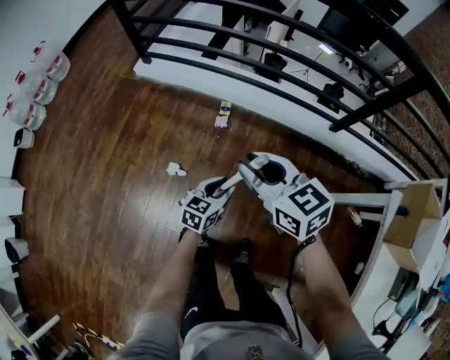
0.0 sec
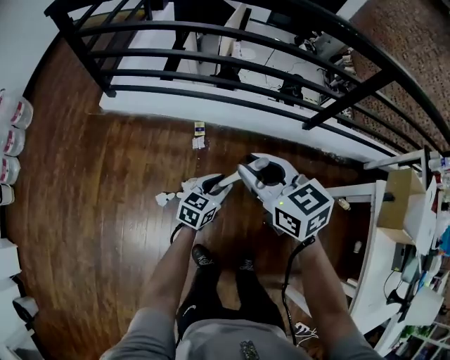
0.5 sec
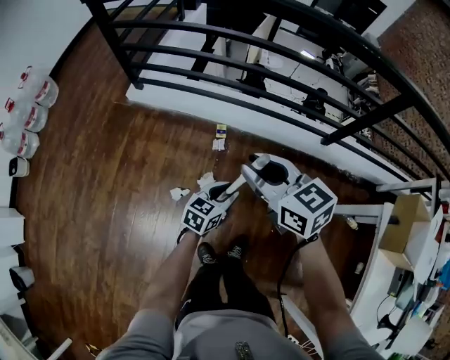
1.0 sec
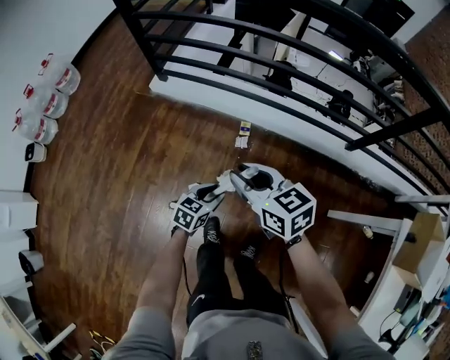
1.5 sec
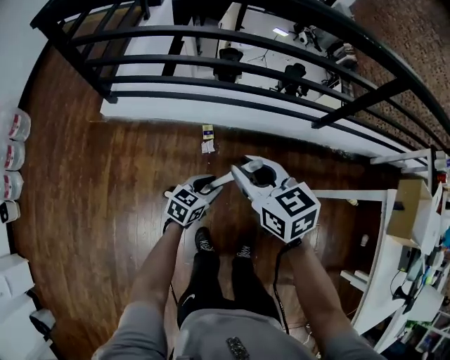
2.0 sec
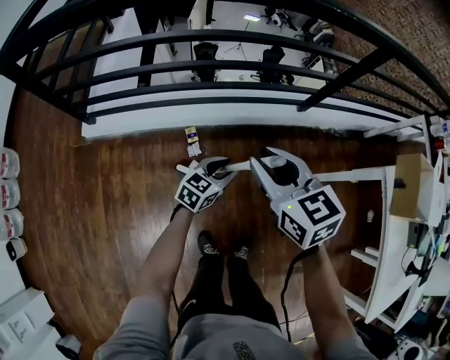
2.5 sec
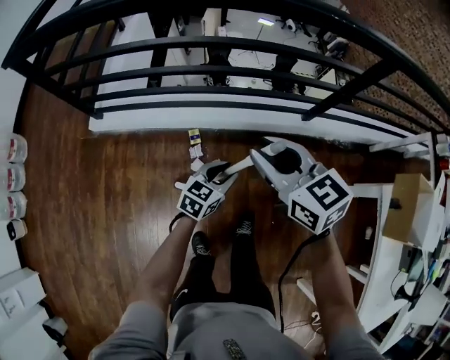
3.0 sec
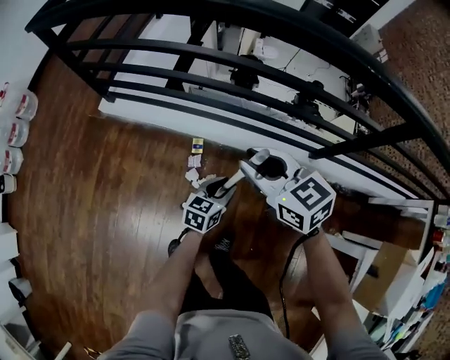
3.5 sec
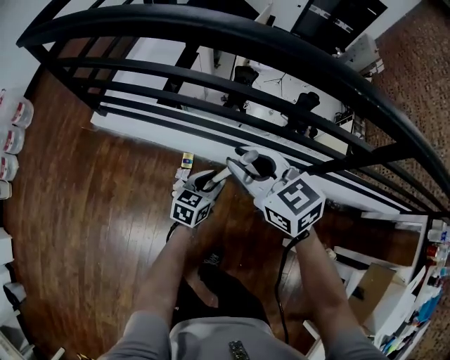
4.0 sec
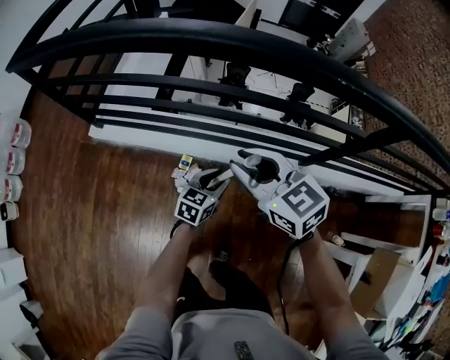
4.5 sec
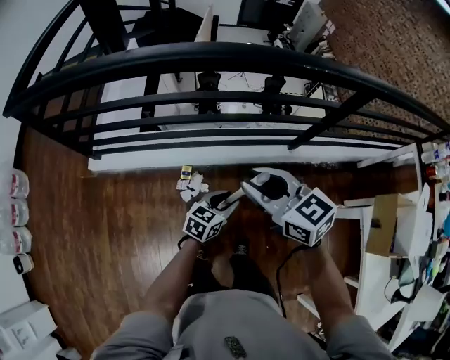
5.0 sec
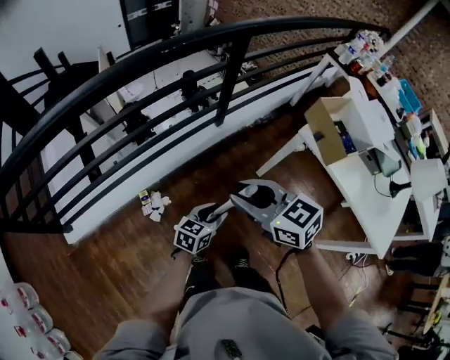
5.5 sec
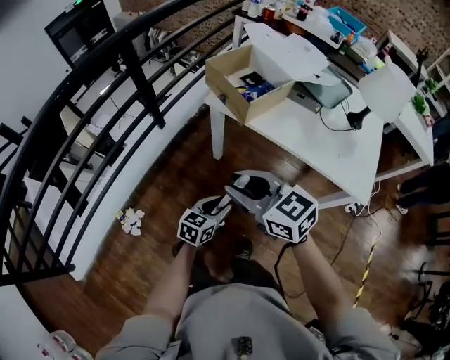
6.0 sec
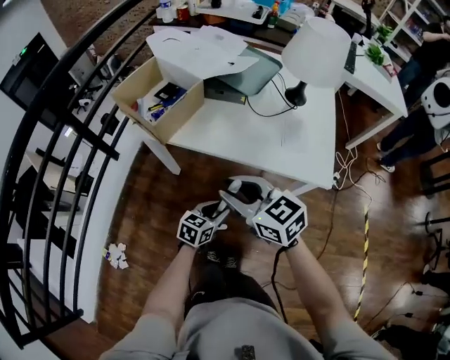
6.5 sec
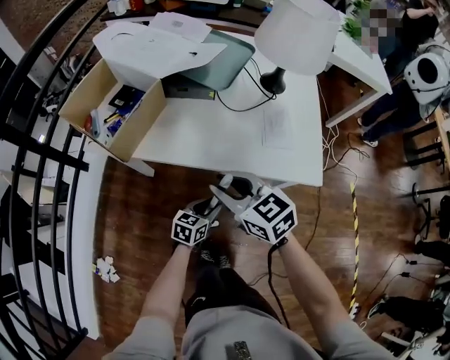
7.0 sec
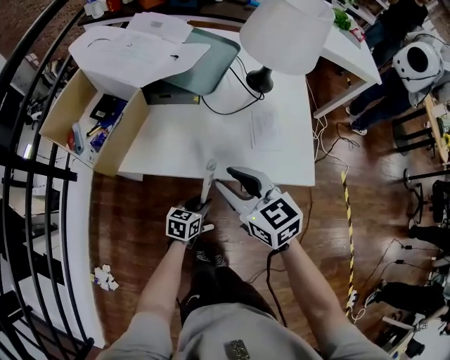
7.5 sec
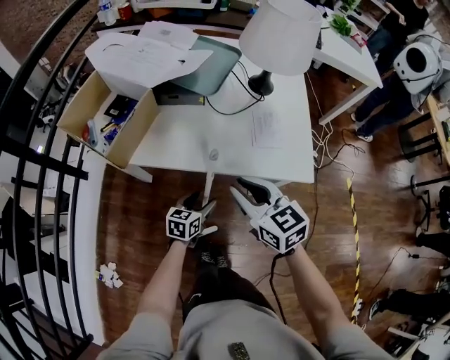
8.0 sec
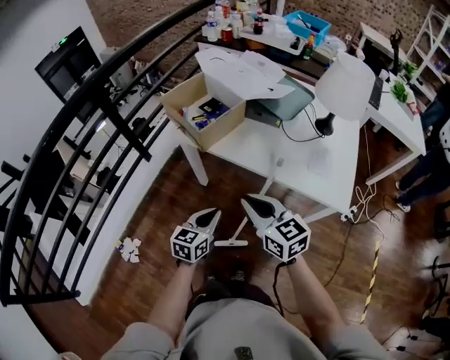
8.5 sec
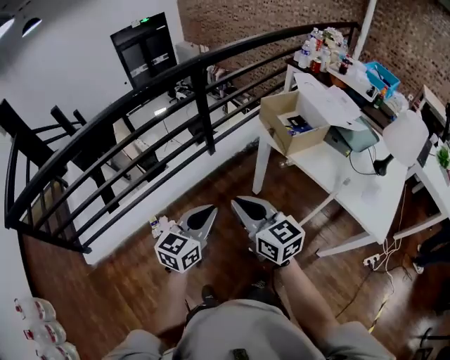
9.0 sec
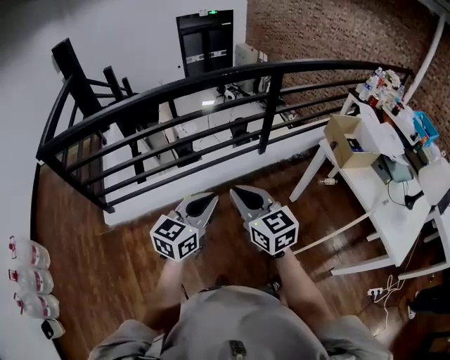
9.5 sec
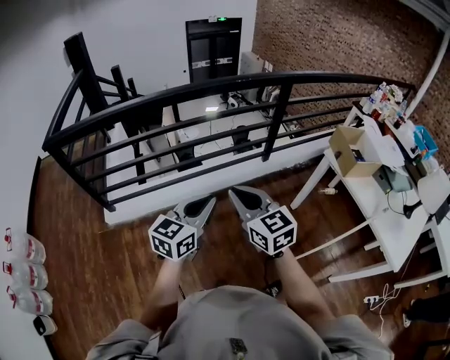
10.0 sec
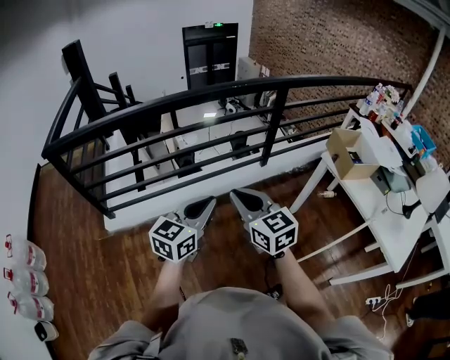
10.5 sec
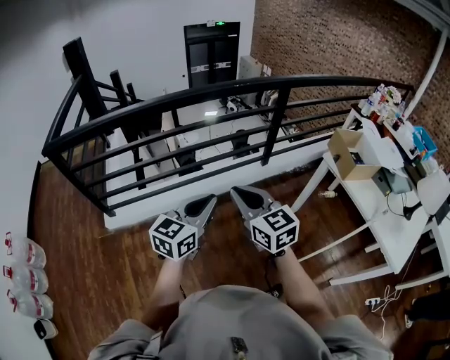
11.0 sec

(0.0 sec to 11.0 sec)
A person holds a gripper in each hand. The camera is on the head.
0.0 sec - 2.0 sec: Both grippers travel together forward and to the left, approximately 20 cm. The left gripper turns by roughly 20 degrees; the right gripper changes its angle by about 20 degrees.
2.0 sec - 3.5 sec: The left gripper moves about 20 cm, and swivels about 20 degrees; the right gripper shifts by about 20 cm, and swivels approximately 20 degrees.
3.5 sec - 5.5 sec: The left gripper changes place by approximately 25 cm, and turns by approximately 50 degrees, while the right gripper ends up about 25 cm from where it was, and swivels roughly 40 degrees.
5.5 sec - 7.5 sec: The two grippers travel together, roughly 60 cm. The left gripper swivels roughly 40 degrees, while the right gripper changes its angle by roughly 60 degrees.
7.5 sec - 9.0 sec: The two grippers travel together, some 50 cm. The right gripper swivels roughly 40 degrees, and closes its fingers; the left gripper changes its angle by roughly 60 degrees, and closes.
9.0 sec - 11.0 sec: Both grippers travel together to the left, approximately 30 cm.

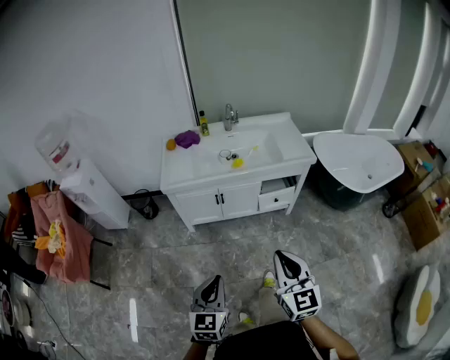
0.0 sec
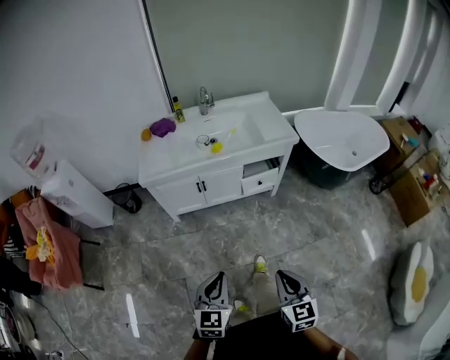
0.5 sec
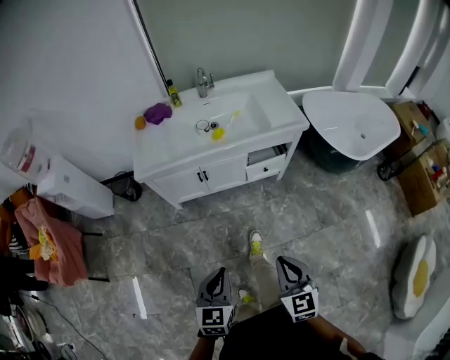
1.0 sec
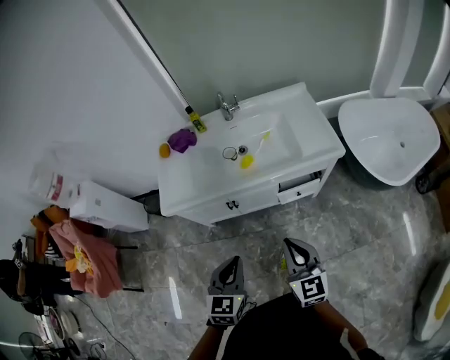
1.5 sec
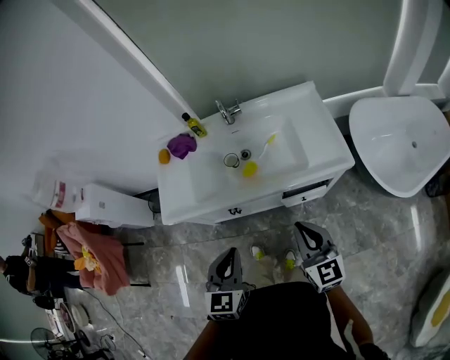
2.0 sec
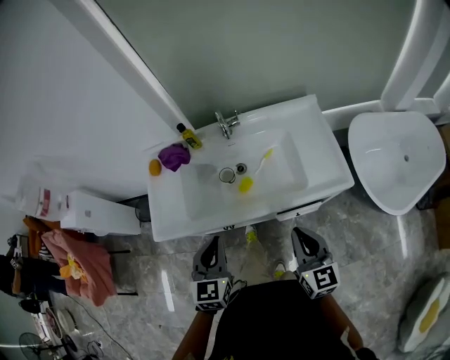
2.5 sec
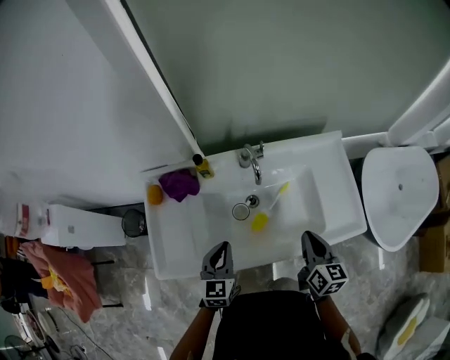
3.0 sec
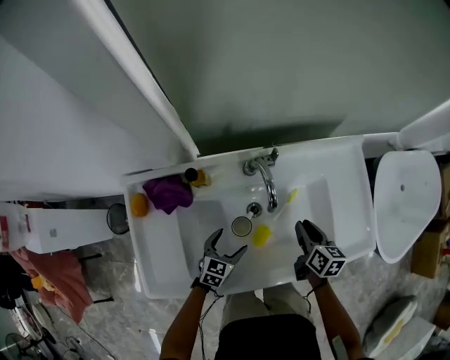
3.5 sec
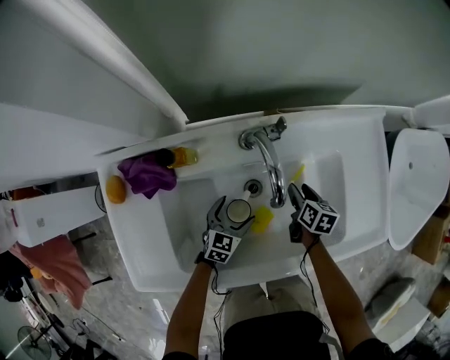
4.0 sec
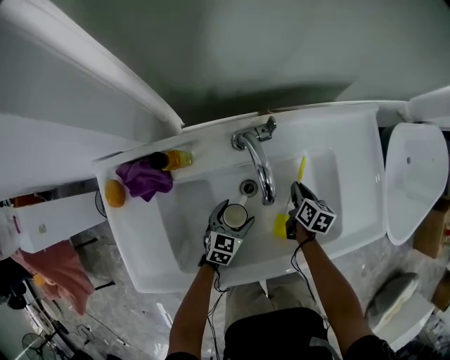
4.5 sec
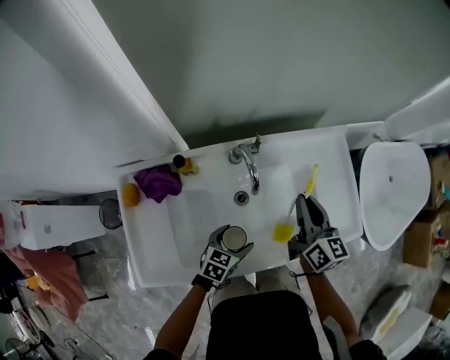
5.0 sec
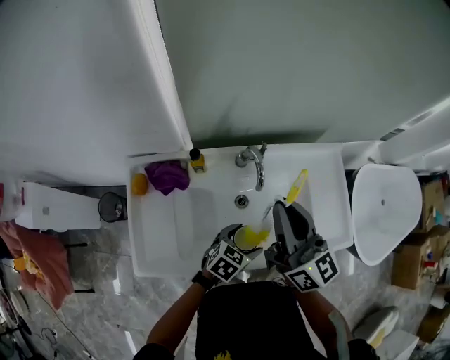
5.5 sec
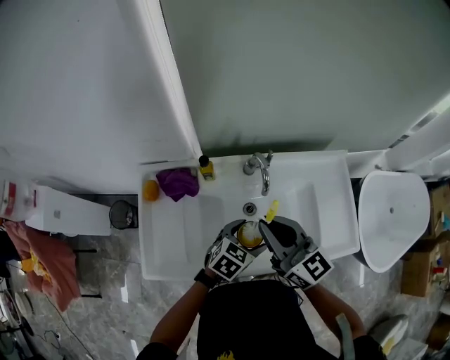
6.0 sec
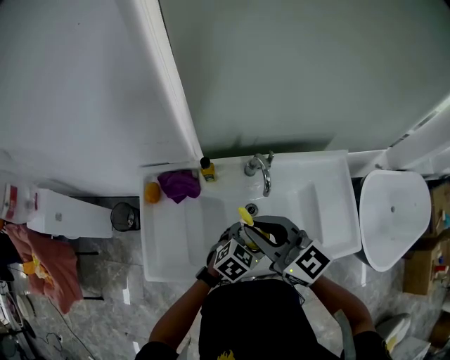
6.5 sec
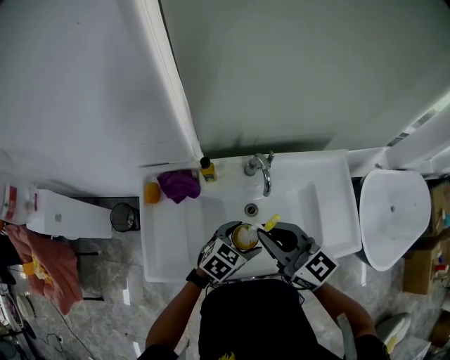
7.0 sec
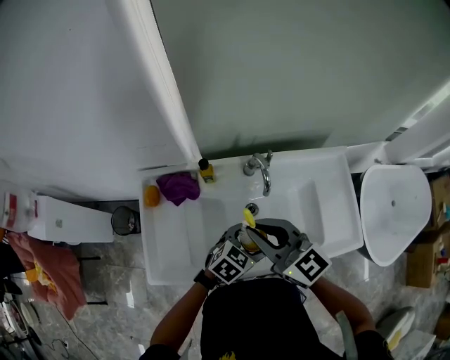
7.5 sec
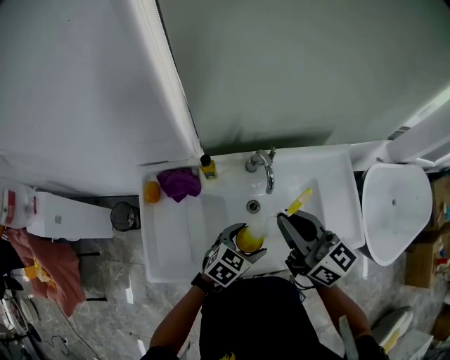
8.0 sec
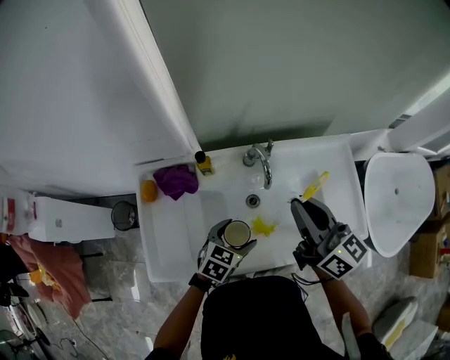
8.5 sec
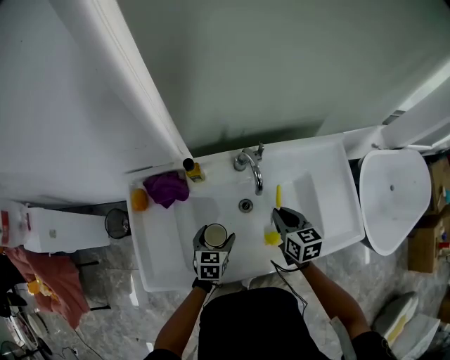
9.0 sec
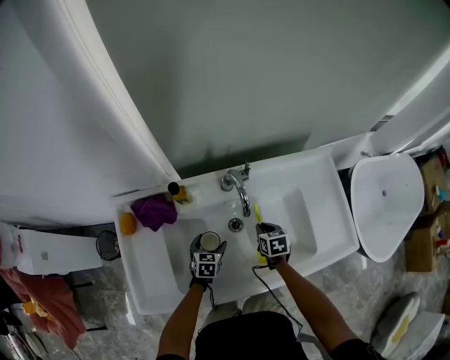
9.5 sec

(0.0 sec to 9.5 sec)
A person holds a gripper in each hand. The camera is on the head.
0.0 sec - 2.0 sec: The two grippers travel together, forward, some 50 cm.
2.0 sec - 4.0 sec: Both grippers are carried forward, about 50 cm. Both grippers travel together downward, roughly 40 cm. The left gripper swivels approximately 30 degrees, and opens its fingers. Meanwhile the right gripper angles its fingers downward, by approximately 40 degrees, and opens up.
4.0 sec - 5.5 sec: The right gripper heads upward, covering some 50 cm, tilts its fingers some 60 degrees upward, and closes up. The left gripper goes about 25 cm upward.
5.5 sec - 7.5 sec: The right gripper goes roughly 10 cm to the left and backward, and changes its angle by some 30 degrees.
7.5 sec - 9.5 sec: The grippers both shift downward by approximately 30 cm. The right gripper angles its fingers downward, by some 50 degrees. The left gripper turns by approximately 30 degrees.

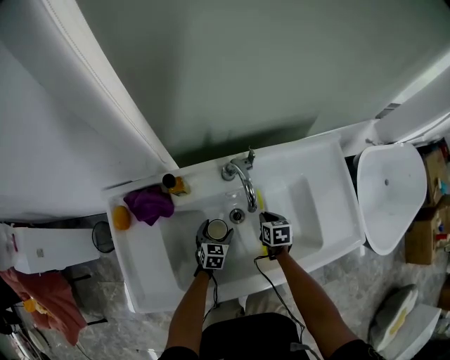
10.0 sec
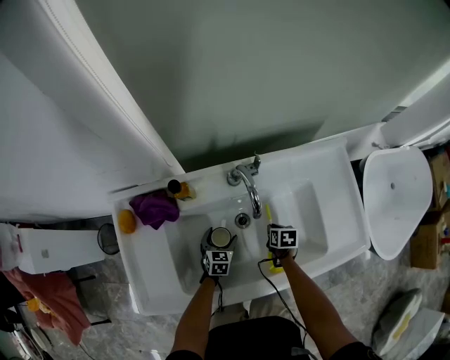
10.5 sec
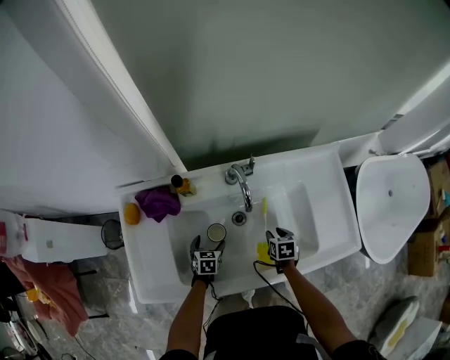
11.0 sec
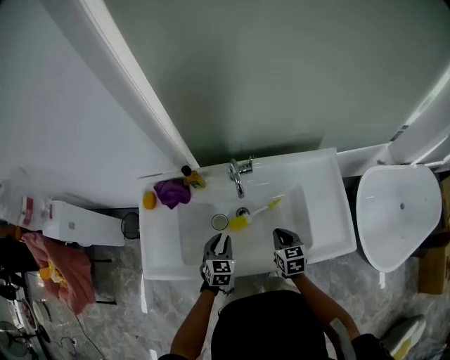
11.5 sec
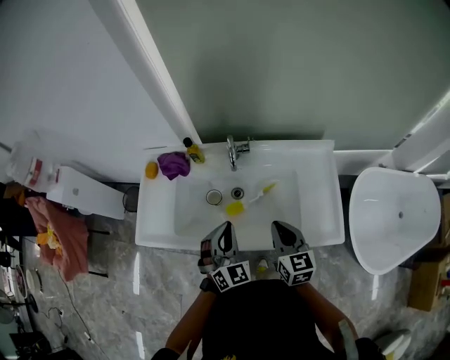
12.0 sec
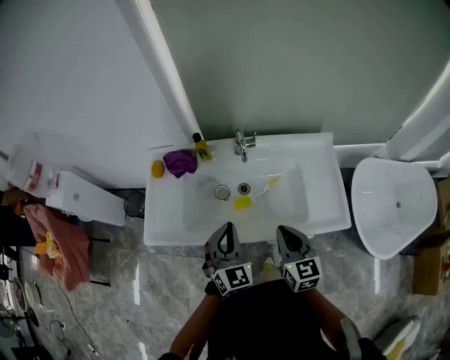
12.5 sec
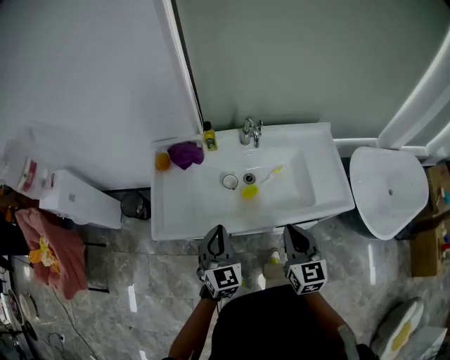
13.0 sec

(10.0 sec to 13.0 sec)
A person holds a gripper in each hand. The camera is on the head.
10.0 sec - 11.5 sec: Both grippers travel together upward and backward, some 20 cm. The left gripper closes up. Meanwhile the right gripper turns by about 20 degrees, and opens and closes again.
11.5 sec - 13.0 sec: Both grippers move backward, upward and to the left, roughly 30 cm. The right gripper turns by roughly 20 degrees. The left gripper changes its angle by approximately 20 degrees.

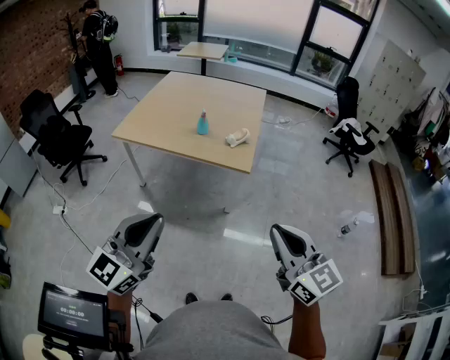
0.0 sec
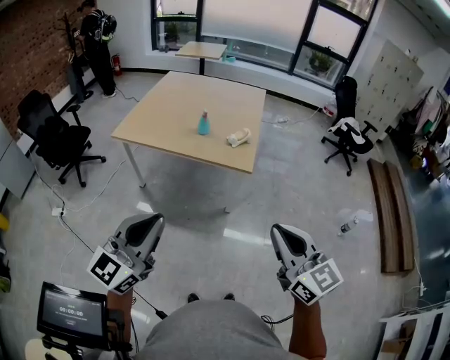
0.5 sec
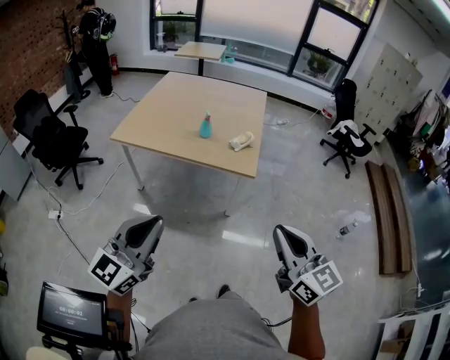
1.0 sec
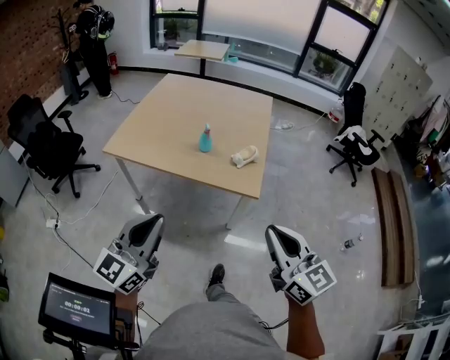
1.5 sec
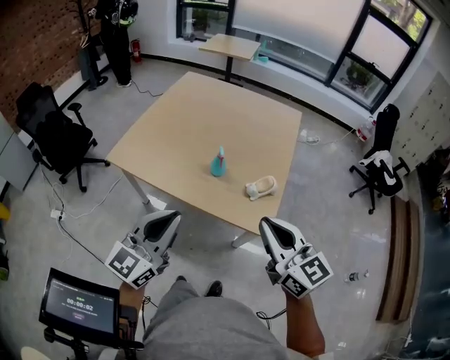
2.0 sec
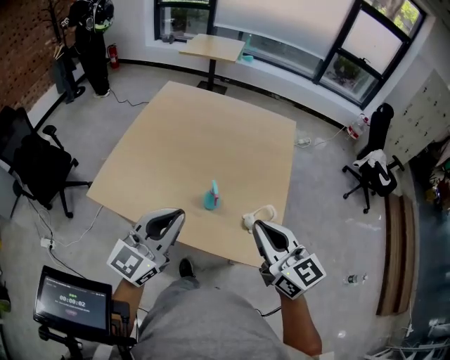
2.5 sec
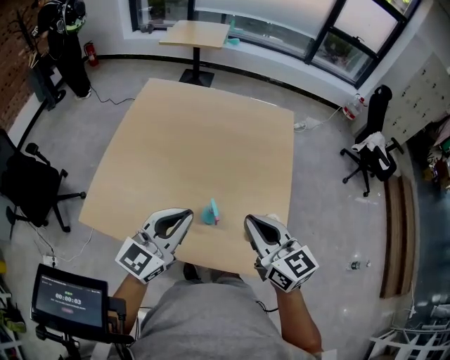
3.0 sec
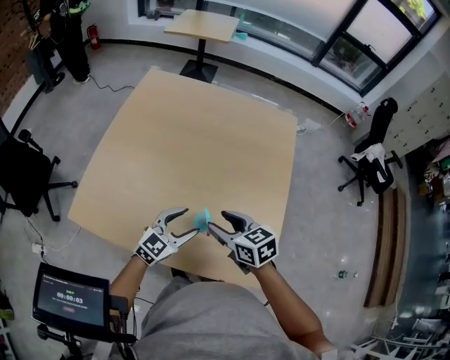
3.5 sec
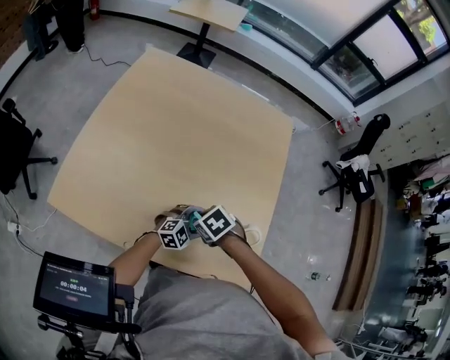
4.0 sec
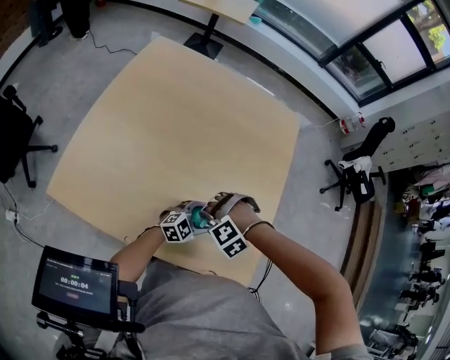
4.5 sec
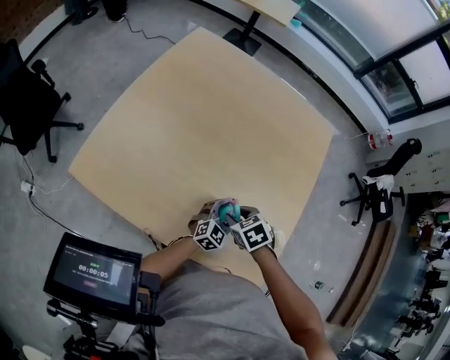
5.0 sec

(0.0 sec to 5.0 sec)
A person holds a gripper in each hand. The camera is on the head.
0.0 sec - 2.5 sec: The pair of grippers is taken forward, about 70 cm.
2.5 sec - 5.0 sec: The two grippers go roughly 35 cm downward. The left gripper turns by some 30 degrees, and opens up. Meanwhile the right gripper tilts its fingers roughly 60 degrees downward, and opens up.
